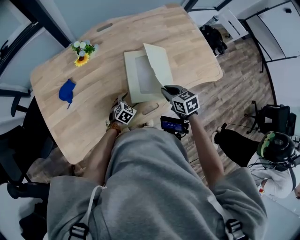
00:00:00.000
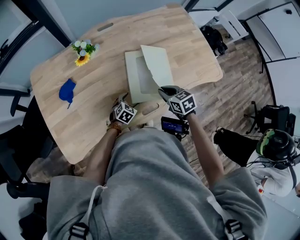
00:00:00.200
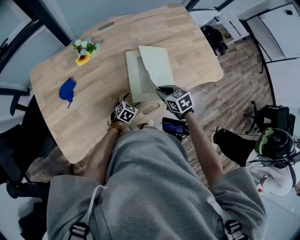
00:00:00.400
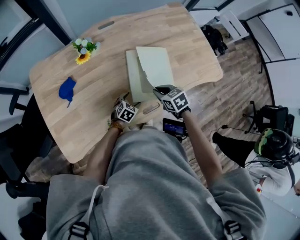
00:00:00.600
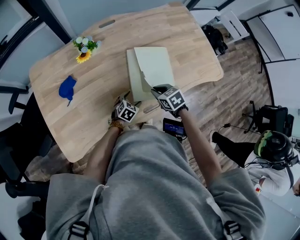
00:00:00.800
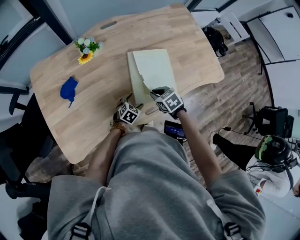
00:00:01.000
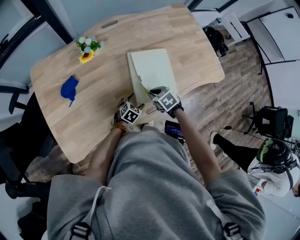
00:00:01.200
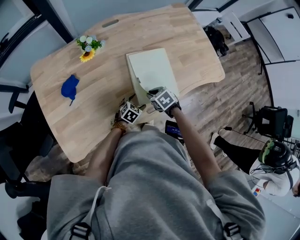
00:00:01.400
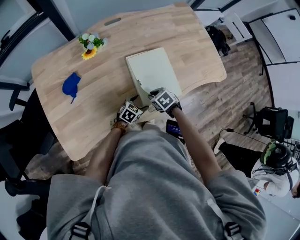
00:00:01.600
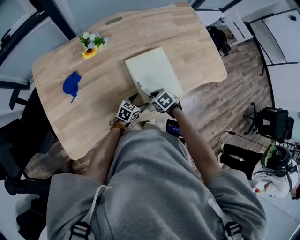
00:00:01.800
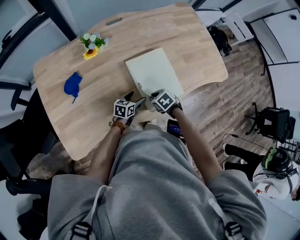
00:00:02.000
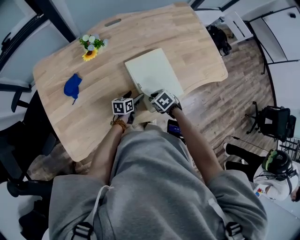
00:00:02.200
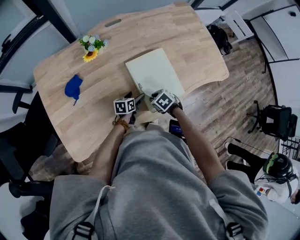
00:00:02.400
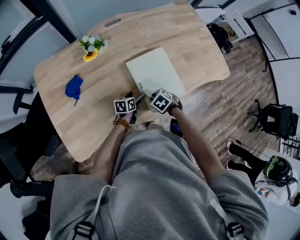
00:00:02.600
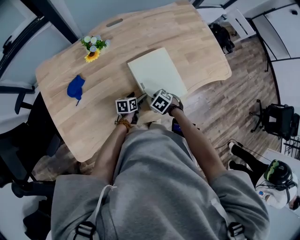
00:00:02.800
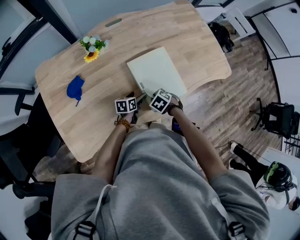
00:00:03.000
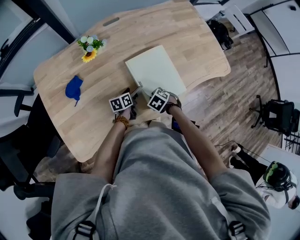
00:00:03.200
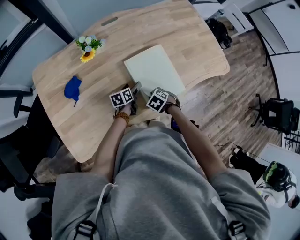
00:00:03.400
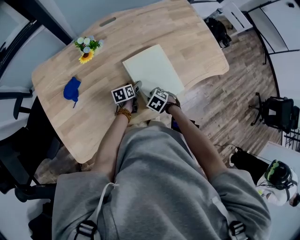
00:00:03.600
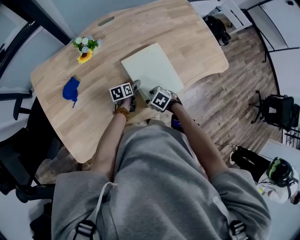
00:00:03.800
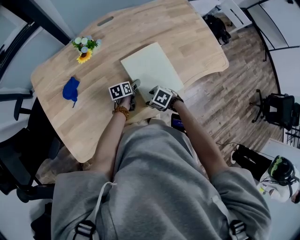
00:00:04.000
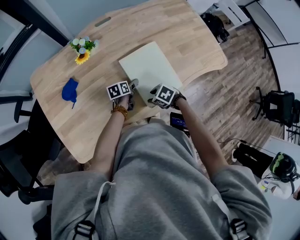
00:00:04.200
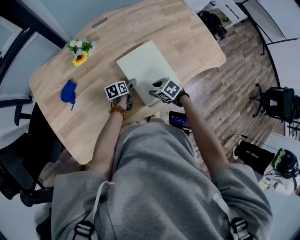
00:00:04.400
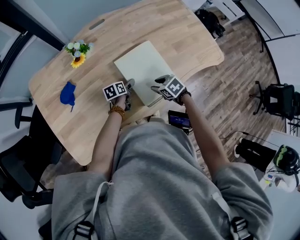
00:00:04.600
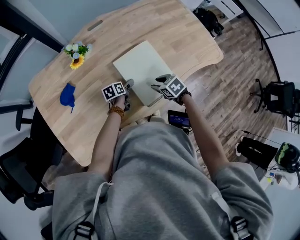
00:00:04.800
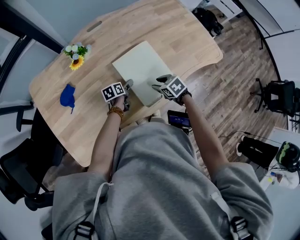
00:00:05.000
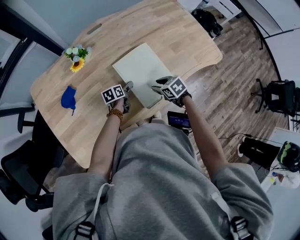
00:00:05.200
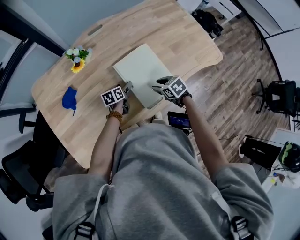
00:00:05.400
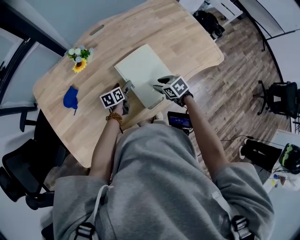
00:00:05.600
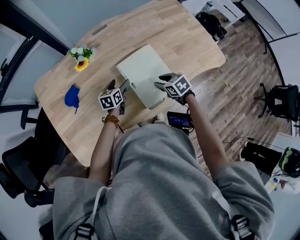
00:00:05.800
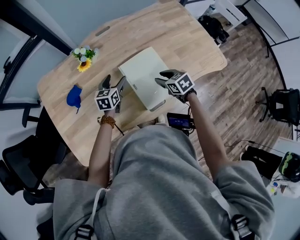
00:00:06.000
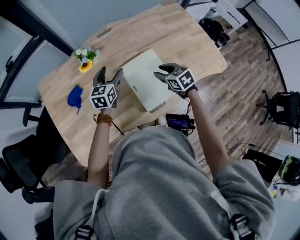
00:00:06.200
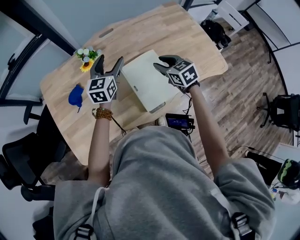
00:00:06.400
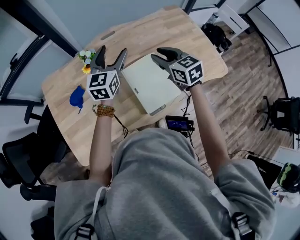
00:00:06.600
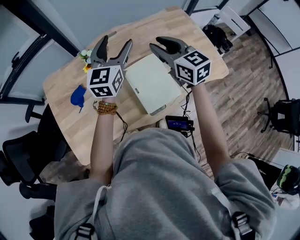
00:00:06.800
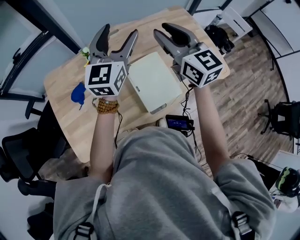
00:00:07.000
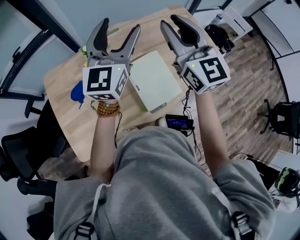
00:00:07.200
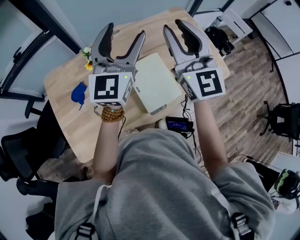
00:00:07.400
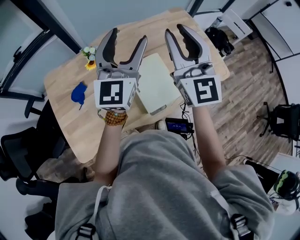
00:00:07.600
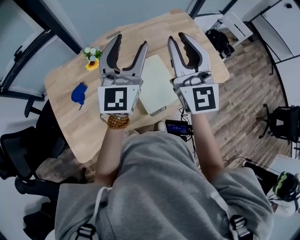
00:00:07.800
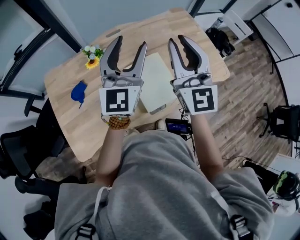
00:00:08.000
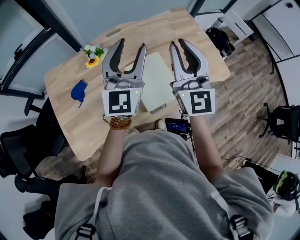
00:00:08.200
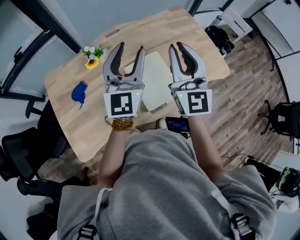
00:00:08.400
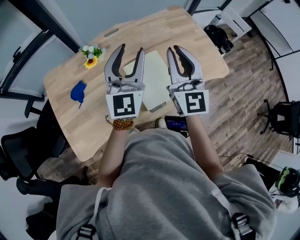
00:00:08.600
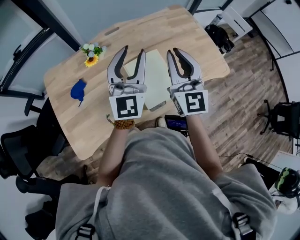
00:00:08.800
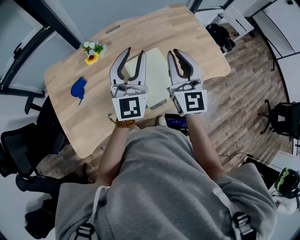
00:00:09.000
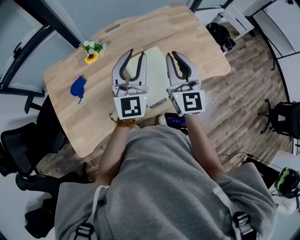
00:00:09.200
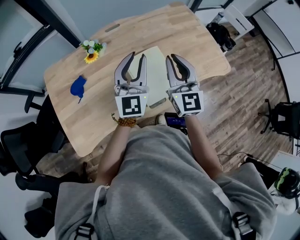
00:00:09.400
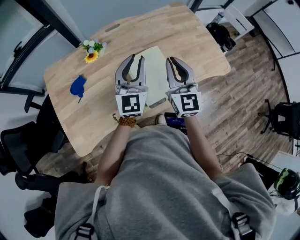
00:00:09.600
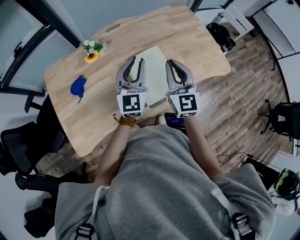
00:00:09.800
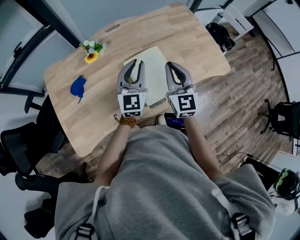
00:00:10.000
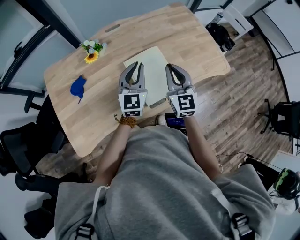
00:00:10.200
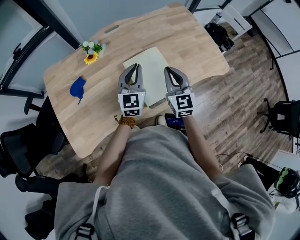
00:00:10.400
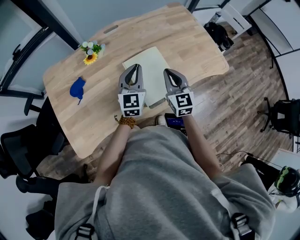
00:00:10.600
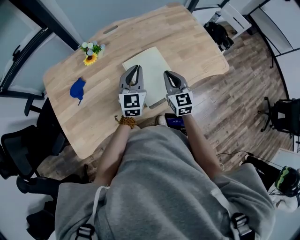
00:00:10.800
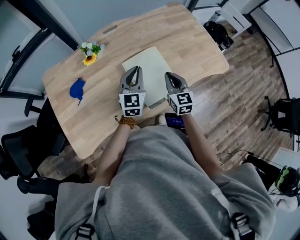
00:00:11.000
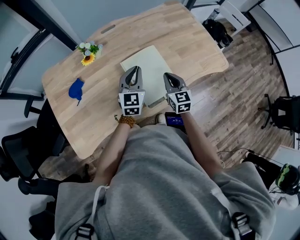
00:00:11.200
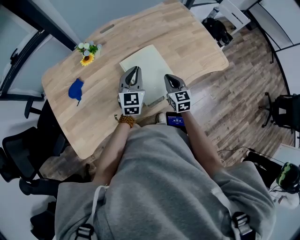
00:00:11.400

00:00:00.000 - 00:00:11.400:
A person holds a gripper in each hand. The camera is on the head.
00:00:00.000 - 00:00:01.400: The right gripper goes approximately 15 cm downward and to the left, and changes its angle by about 30 degrees.
00:00:01.400 - 00:00:02.800: The left gripper changes place by roughly 5 cm, and rolls counterclockwise, seen from behind, by roughly 40 degrees. Meanwhile the right gripper ends up approximately 5 cm from where it was.
00:00:02.800 - 00:00:04.200: The left gripper changes place by approximately 5 cm; the right gripper opens up.
00:00:04.200 - 00:00:05.600: The left gripper shifts by about 5 cm. The right gripper ends up about 10 cm from where it was, and turns by about 30 degrees.
00:00:05.600 - 00:00:07.200: Both grippers travel together upward, some 50 cm. The right gripper angles its fingers upward, by some 60 degrees; the left gripper tips its fingers upward by some 50 degrees.
00:00:07.200 - 00:00:08.600: The left gripper shifts about 10 cm backward and downward, and closes up. The right gripper shifts approximately 10 cm downward and backward.
00:00:08.600 - 00:00:10.000: The two grippers go approximately 15 cm downward.
00:00:10.000 - 00:00:11.400: The left gripper is displaced downward by roughly 10 cm. The right gripper heads downward, covering about 20 cm, and turns by about 20 degrees.

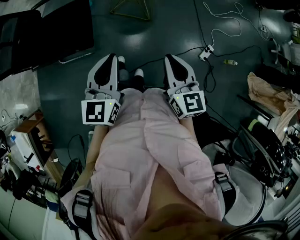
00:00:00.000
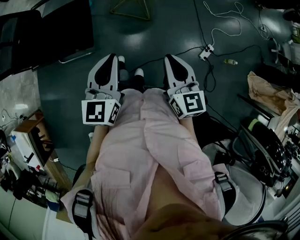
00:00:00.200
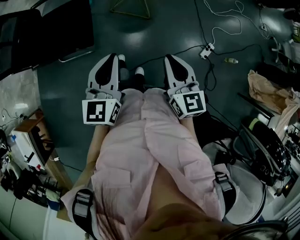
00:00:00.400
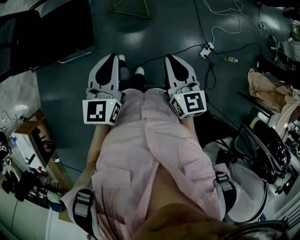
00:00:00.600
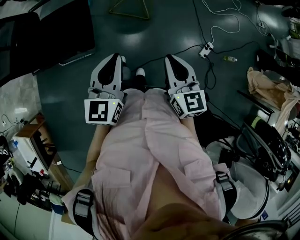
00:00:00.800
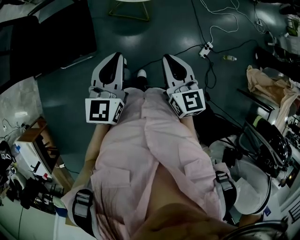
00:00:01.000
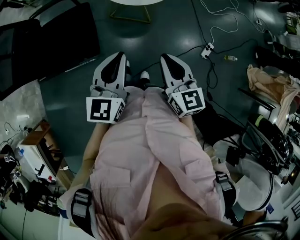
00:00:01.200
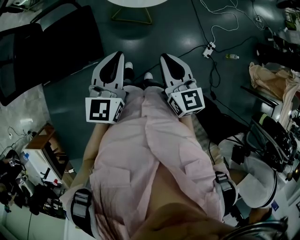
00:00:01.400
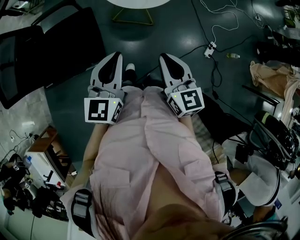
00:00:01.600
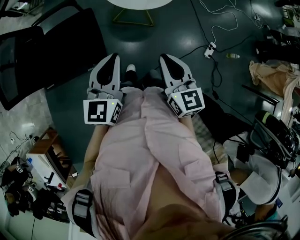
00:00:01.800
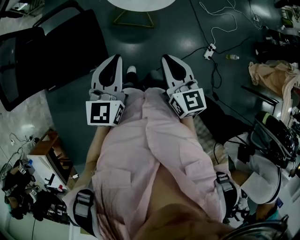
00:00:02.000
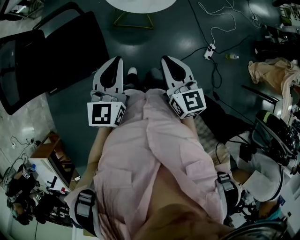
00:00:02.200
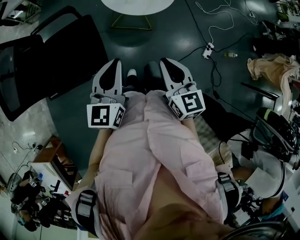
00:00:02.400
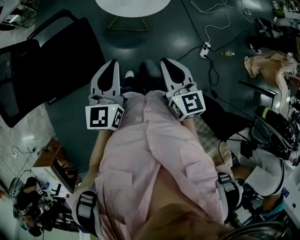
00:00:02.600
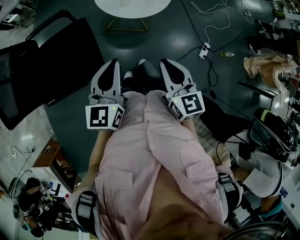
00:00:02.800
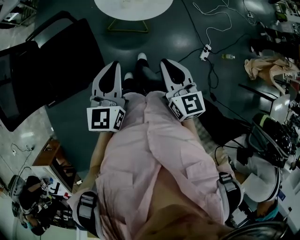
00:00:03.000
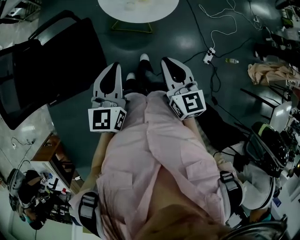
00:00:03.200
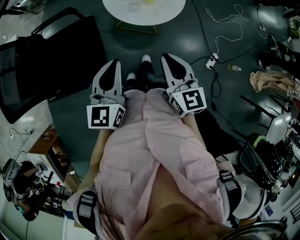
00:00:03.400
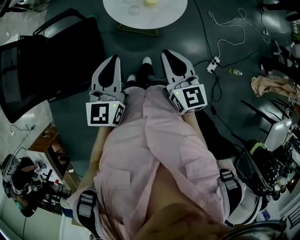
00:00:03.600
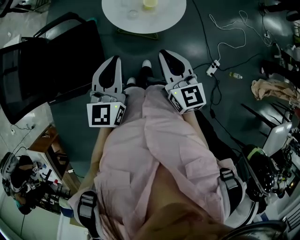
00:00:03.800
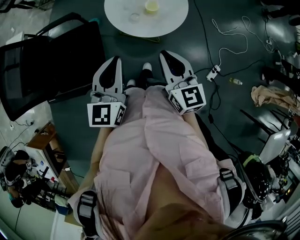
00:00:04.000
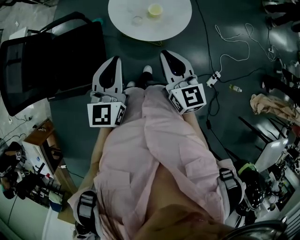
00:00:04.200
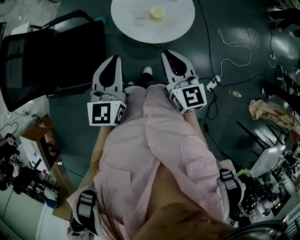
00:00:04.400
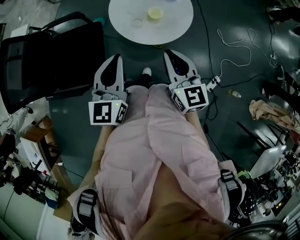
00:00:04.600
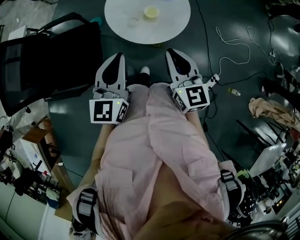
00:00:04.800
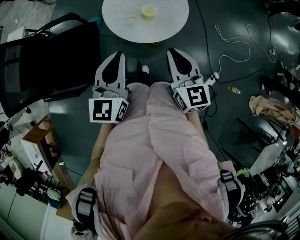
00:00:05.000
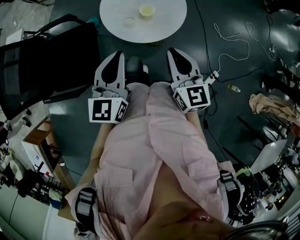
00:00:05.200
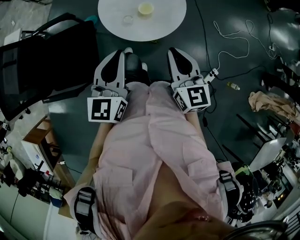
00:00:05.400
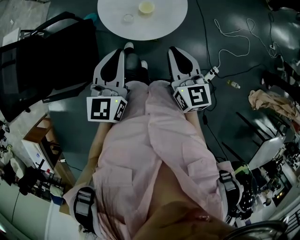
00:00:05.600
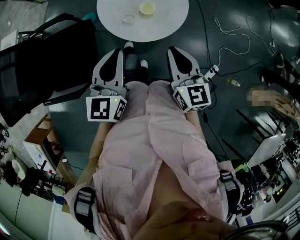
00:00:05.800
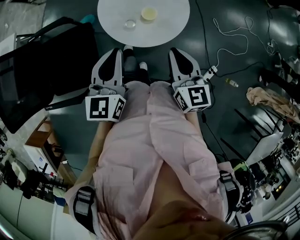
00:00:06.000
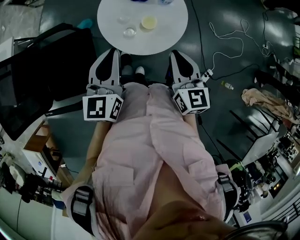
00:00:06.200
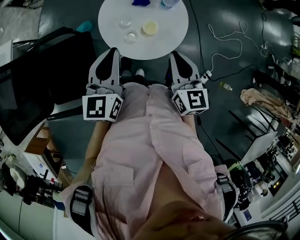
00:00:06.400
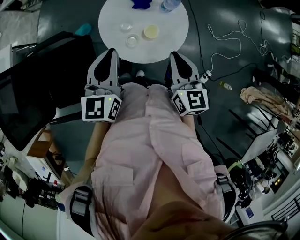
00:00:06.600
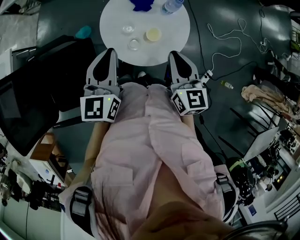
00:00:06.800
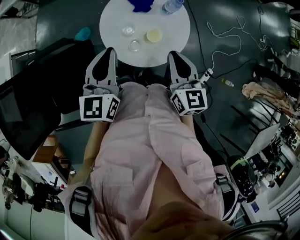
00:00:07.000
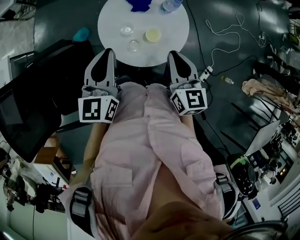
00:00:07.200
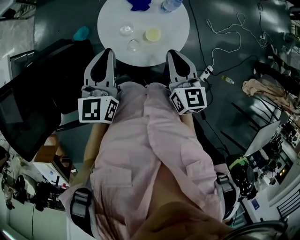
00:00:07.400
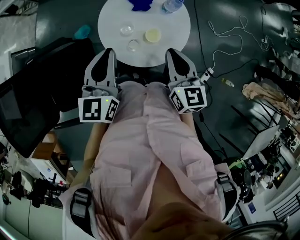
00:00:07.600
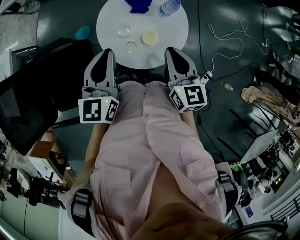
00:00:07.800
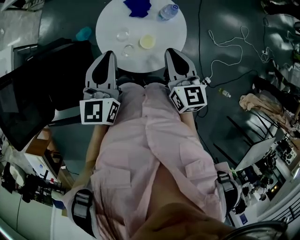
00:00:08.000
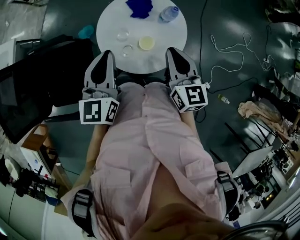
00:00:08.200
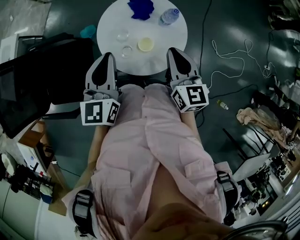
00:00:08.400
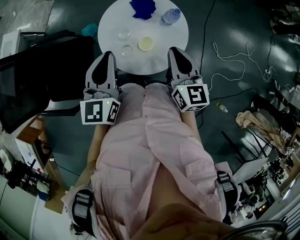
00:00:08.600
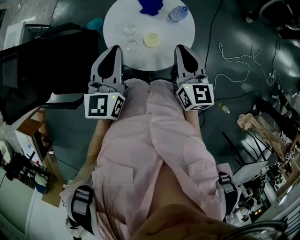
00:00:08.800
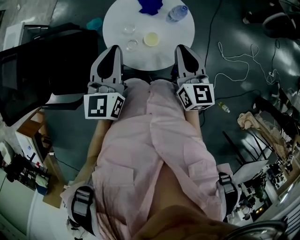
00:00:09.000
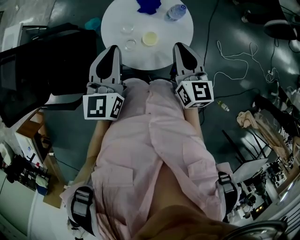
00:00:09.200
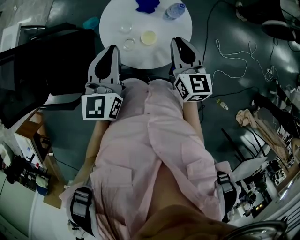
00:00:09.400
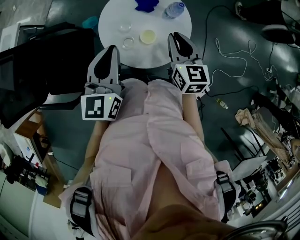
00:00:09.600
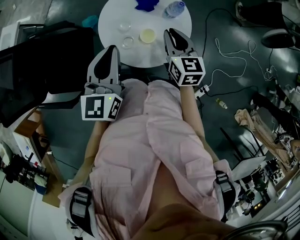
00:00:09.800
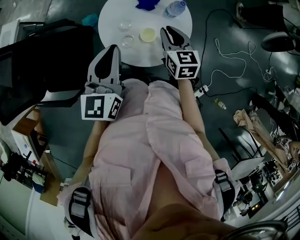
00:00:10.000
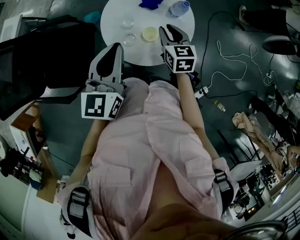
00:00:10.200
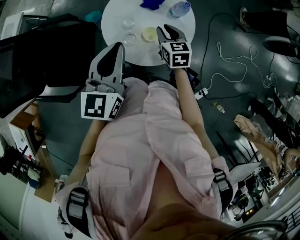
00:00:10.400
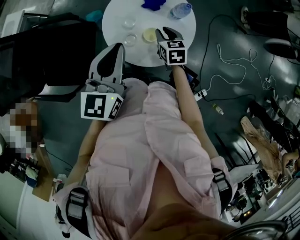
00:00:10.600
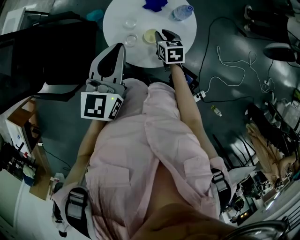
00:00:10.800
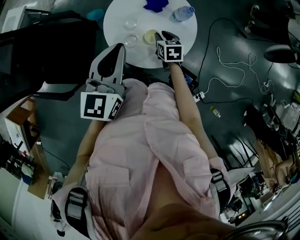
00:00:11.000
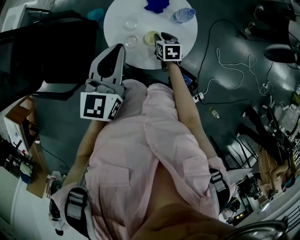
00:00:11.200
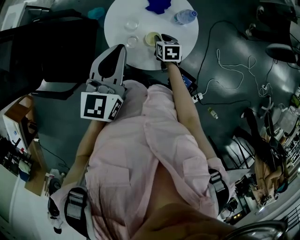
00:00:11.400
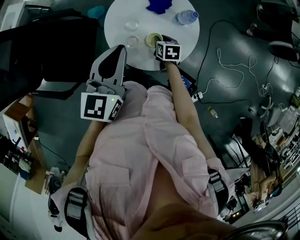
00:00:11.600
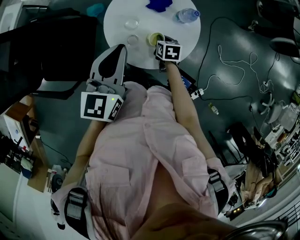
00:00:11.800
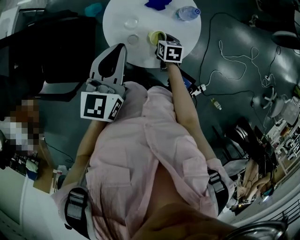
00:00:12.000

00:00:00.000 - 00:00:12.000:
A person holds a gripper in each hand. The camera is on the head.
00:00:00.000 - 00:00:01.600: The two grippers go some 15 cm to the left and forward.
00:00:01.600 - 00:00:03.000: Both grippers move forward, some 5 cm.
00:00:03.000 - 00:00:04.400: The right gripper moves forward, roughly 20 cm, while the left gripper goes some 15 cm forward and to the right.
00:00:04.400 - 00:00:06.000: Both grippers move forward, about 5 cm.
00:00:06.000 - 00:00:07.600: Both grippers move forward, roughly 10 cm.
00:00:07.600 - 00:00:09.000: Both grippers travel together to the right, approximately 5 cm.
00:00:09.000 - 00:00:10.400: The right gripper goes some 15 cm downward and forward, and swivels about 20 degrees.
00:00:10.400 - 00:00:12.000: The right gripper goes about 10 cm downward, and changes its angle by approximately 20 degrees.
